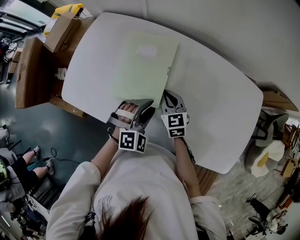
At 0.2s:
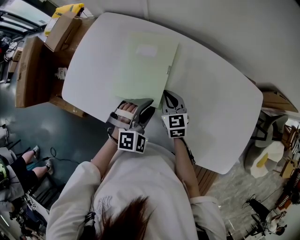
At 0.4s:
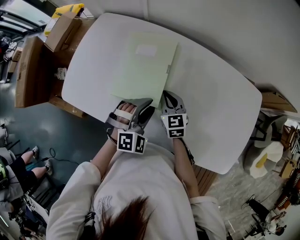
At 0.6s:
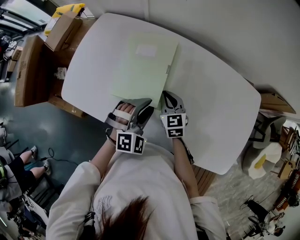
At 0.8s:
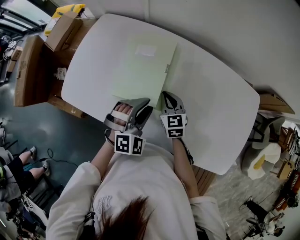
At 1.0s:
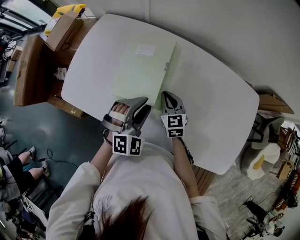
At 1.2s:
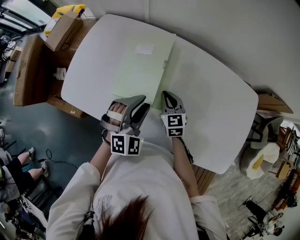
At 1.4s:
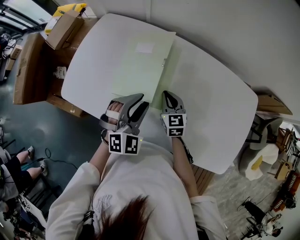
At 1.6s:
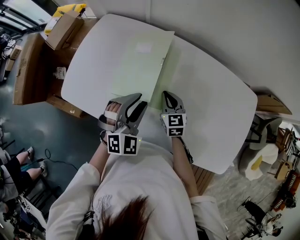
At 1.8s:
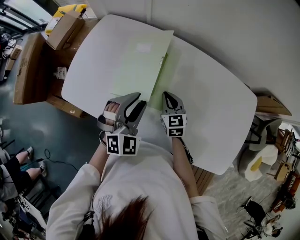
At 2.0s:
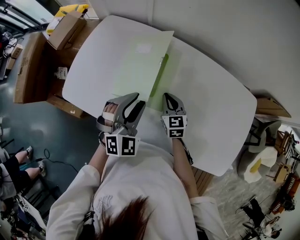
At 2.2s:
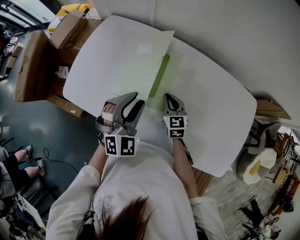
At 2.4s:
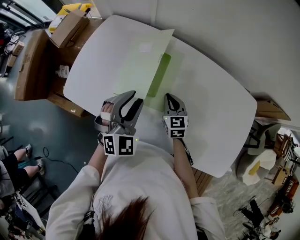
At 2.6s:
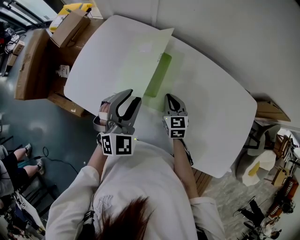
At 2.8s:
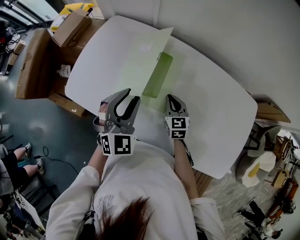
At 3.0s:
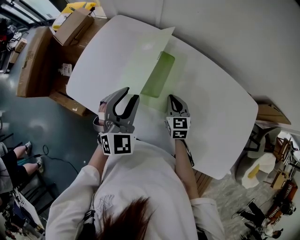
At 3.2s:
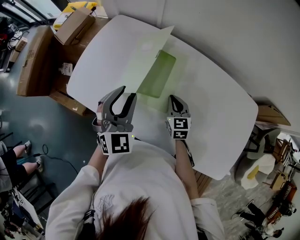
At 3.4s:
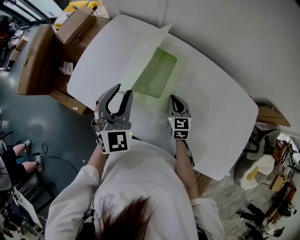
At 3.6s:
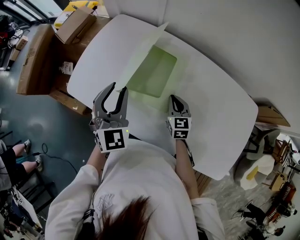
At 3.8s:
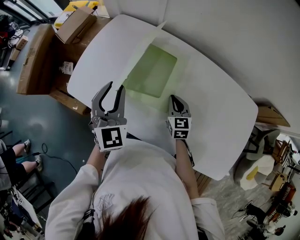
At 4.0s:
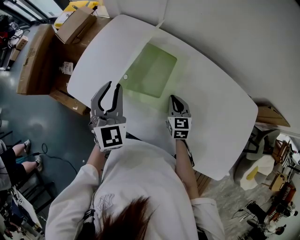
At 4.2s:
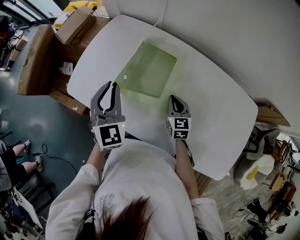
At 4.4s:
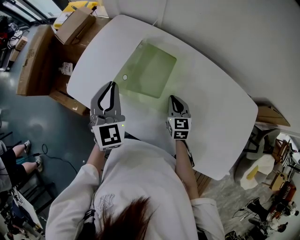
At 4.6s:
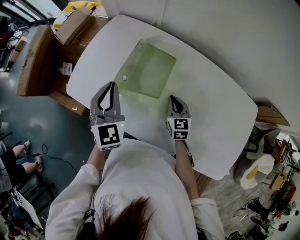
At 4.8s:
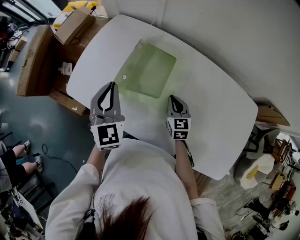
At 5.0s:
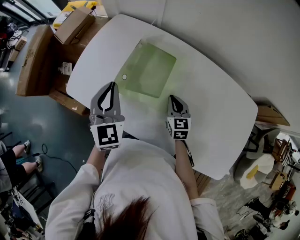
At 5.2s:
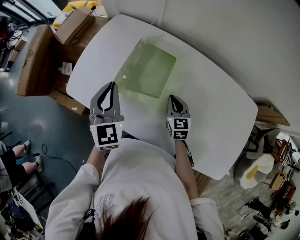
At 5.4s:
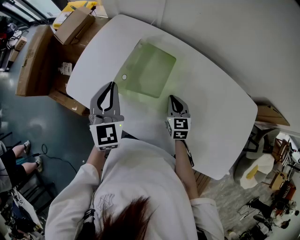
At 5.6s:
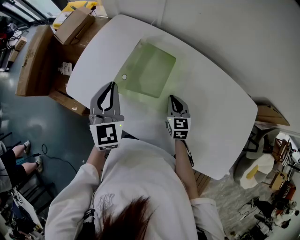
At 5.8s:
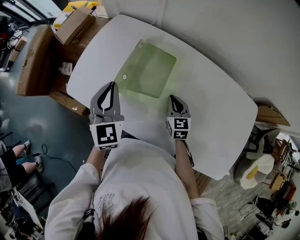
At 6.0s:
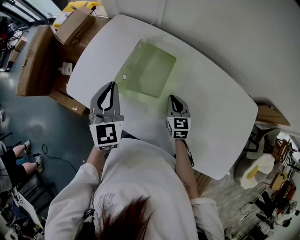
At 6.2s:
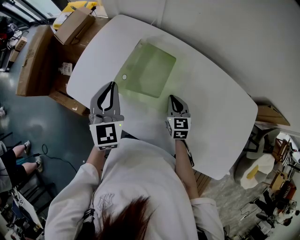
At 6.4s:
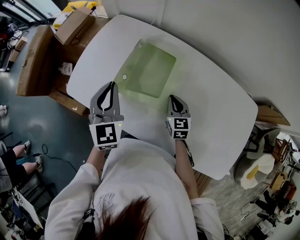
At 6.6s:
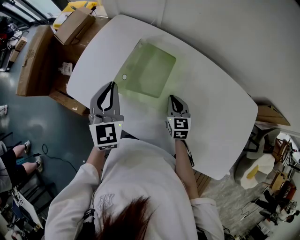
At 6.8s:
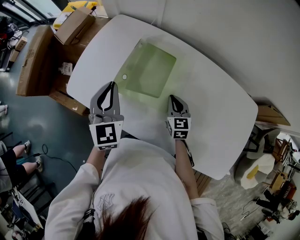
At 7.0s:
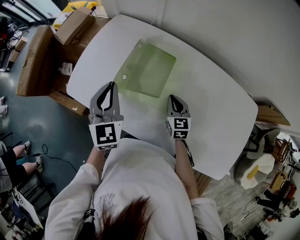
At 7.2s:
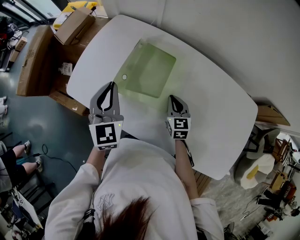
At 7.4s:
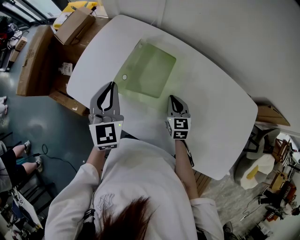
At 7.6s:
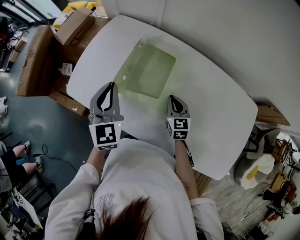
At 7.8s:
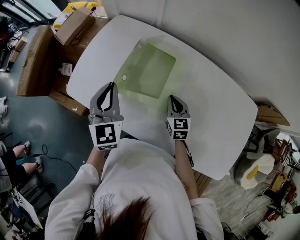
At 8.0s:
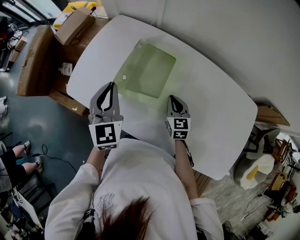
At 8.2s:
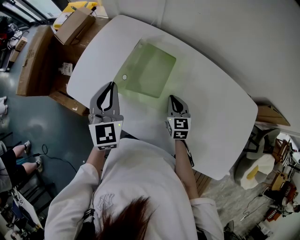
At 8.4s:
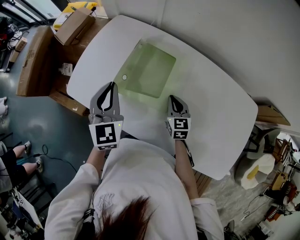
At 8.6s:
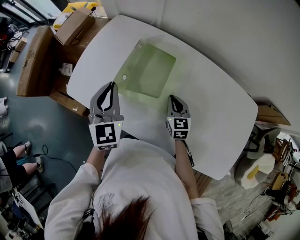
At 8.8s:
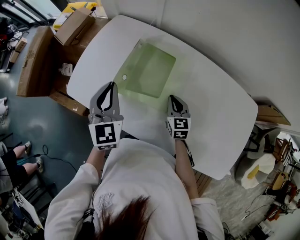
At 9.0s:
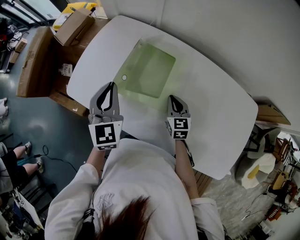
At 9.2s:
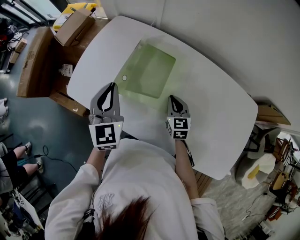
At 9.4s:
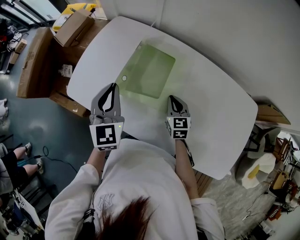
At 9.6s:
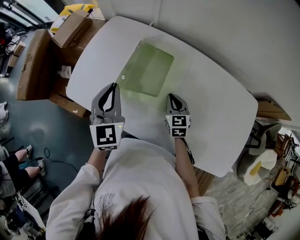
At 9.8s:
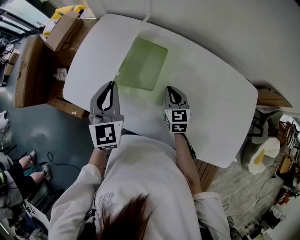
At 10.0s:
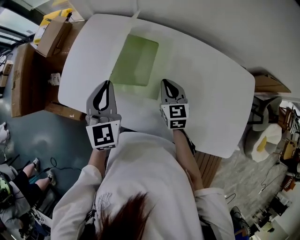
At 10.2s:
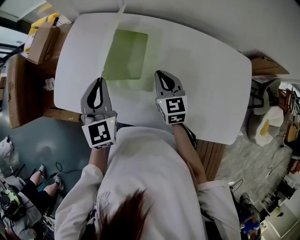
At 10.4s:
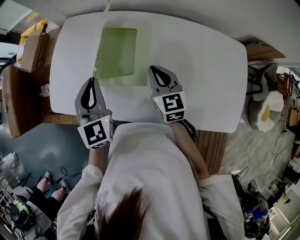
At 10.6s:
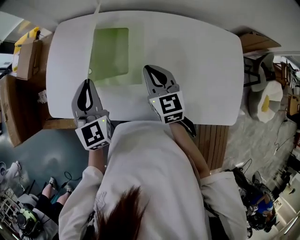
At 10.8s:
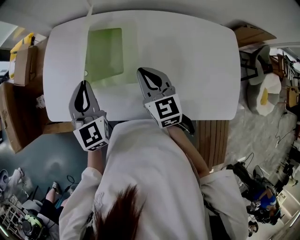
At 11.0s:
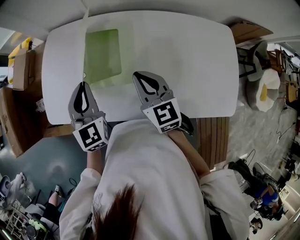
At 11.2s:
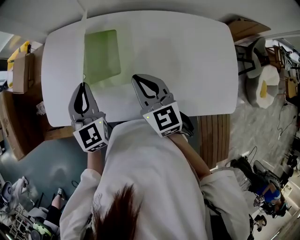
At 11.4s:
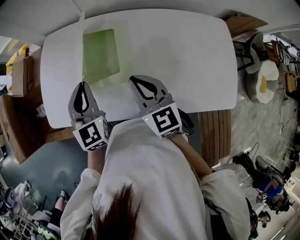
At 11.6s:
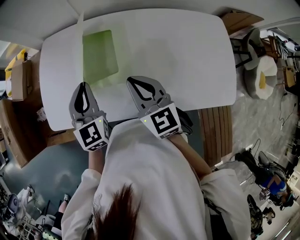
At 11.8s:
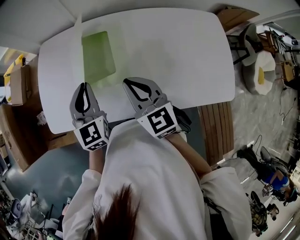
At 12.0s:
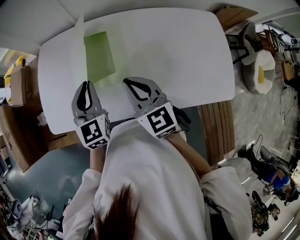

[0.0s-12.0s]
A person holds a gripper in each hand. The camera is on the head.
0.0s to 1.6s: The left gripper goes roughly 10 cm upward.
1.6s to 3.0s: The left gripper heads to the left, covering some 5 cm.
3.0s to 4.4s: The left gripper heads to the left, covering some 5 cm, swivels about 20 degrees, and closes its fingers.
4.4s to 6.0s: The grippers make only small movements.
6.0s to 9.0s: The two grippers keep their place.
9.0s to 10.4s: The right gripper is displaced upward by approximately 10 cm.
10.4s to 12.0s: The right gripper goes about 10 cm backward and upward.

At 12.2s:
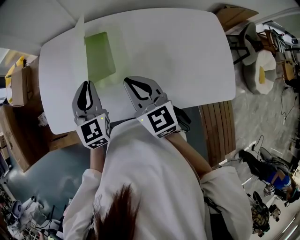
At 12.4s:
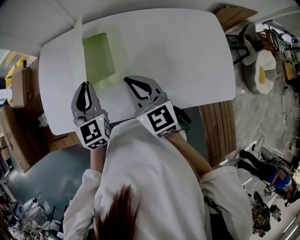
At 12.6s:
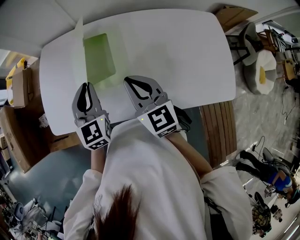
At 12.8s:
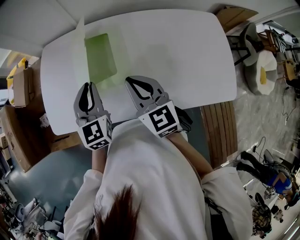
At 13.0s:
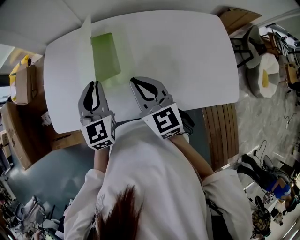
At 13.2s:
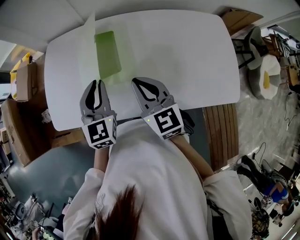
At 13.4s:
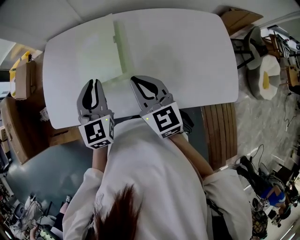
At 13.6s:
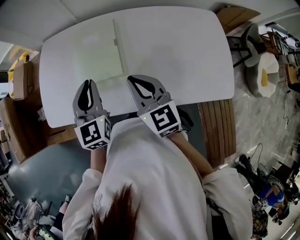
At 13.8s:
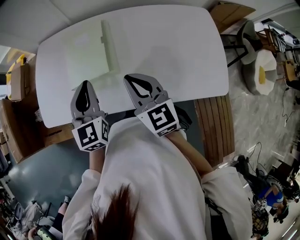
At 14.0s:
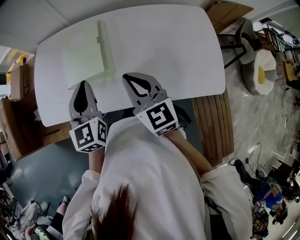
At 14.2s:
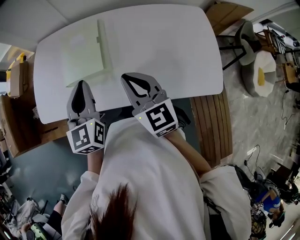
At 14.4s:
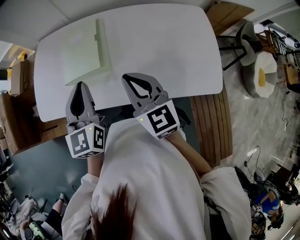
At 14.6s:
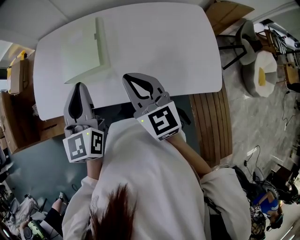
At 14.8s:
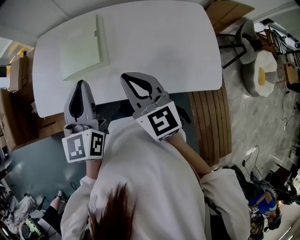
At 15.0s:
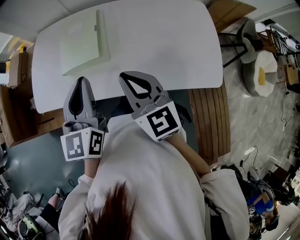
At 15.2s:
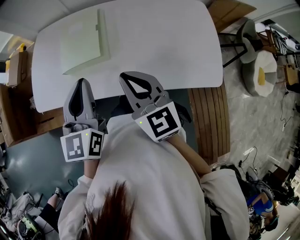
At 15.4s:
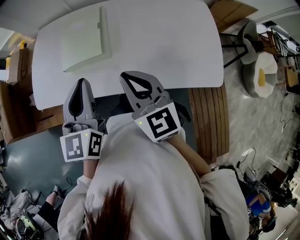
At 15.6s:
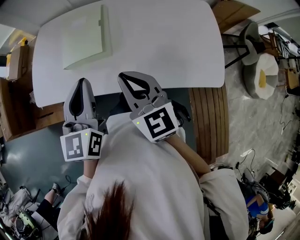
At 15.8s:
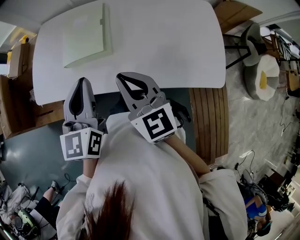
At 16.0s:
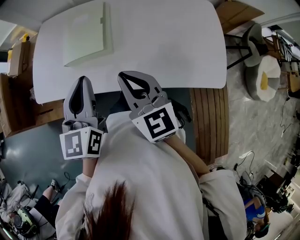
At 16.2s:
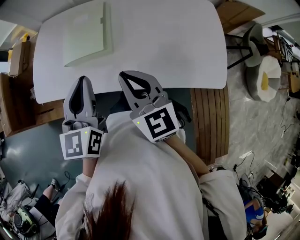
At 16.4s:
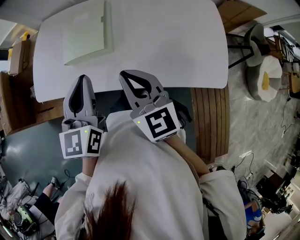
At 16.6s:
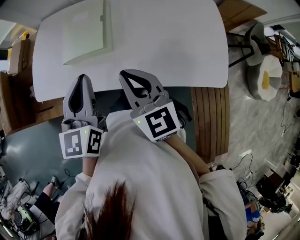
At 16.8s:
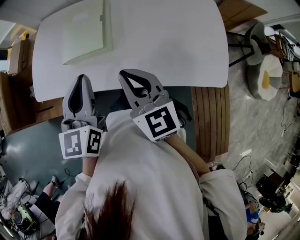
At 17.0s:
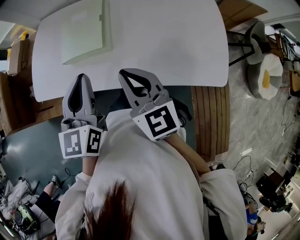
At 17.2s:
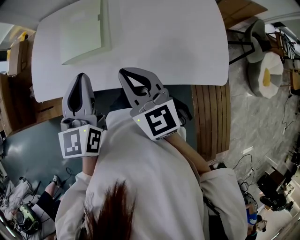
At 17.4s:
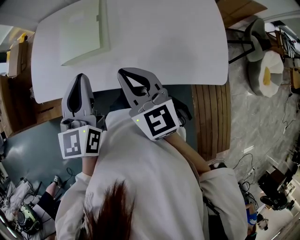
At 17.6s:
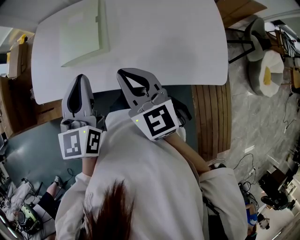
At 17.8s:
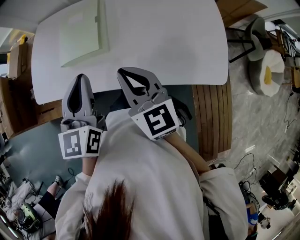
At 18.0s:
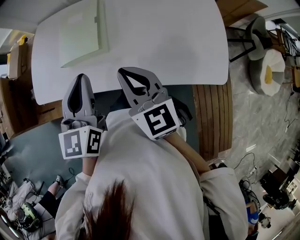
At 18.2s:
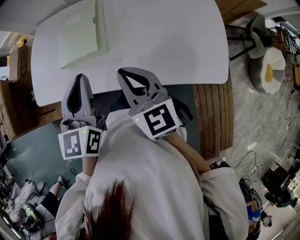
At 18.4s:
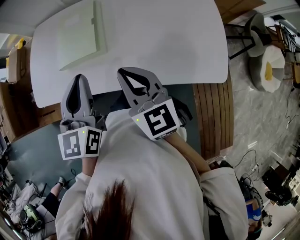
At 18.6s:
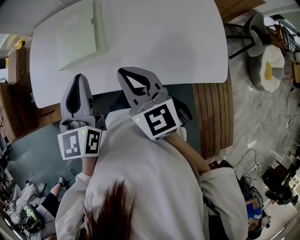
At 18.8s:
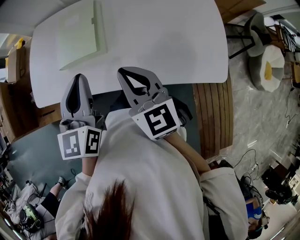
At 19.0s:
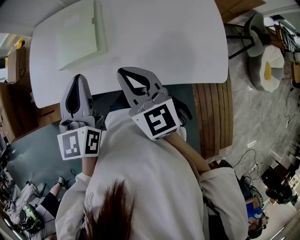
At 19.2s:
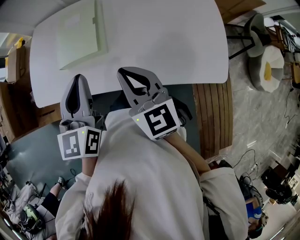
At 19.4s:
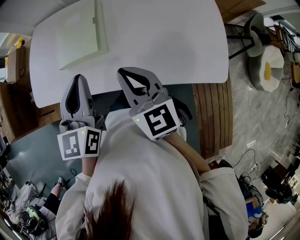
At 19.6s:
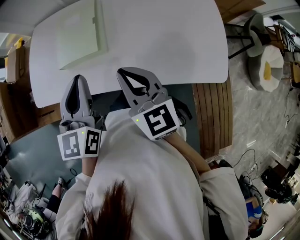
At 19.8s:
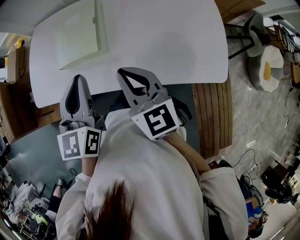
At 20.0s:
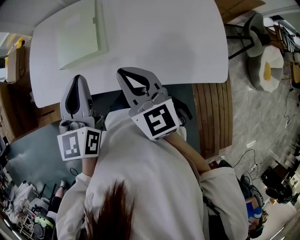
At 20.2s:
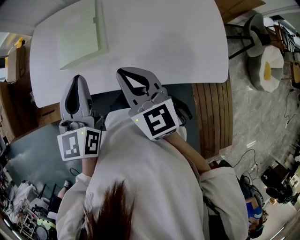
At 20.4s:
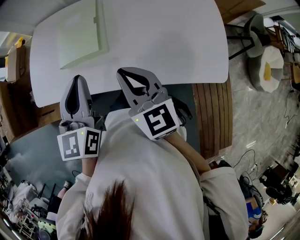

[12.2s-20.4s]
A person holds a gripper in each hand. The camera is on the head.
12.2s to 13.8s: The right gripper goes roughly 10 cm to the right and backward, while the left gripper shifts some 10 cm backward and to the right.
13.8s to 15.4s: The right gripper moves backward, approximately 10 cm; the left gripper shifts approximately 10 cm backward and upward.
15.4s to 20.4s: The grippers stay close to where they were, moving slightly.

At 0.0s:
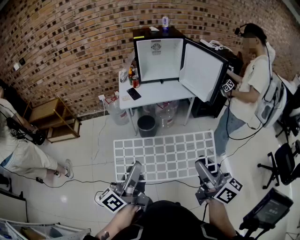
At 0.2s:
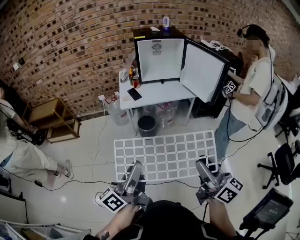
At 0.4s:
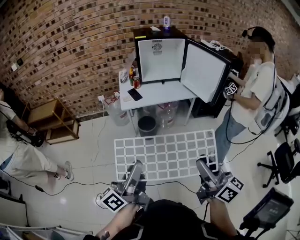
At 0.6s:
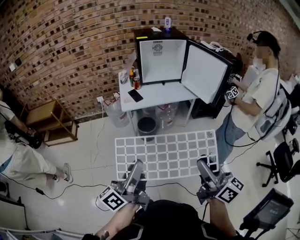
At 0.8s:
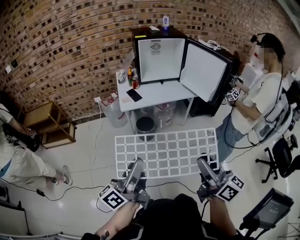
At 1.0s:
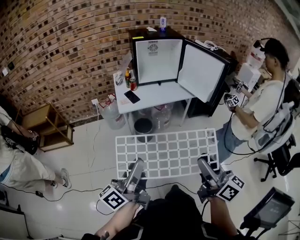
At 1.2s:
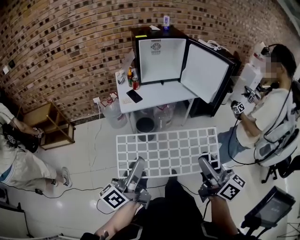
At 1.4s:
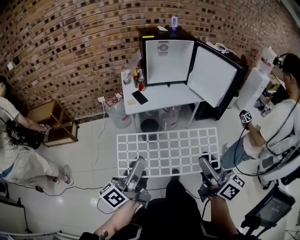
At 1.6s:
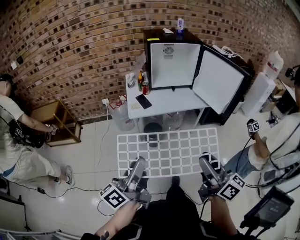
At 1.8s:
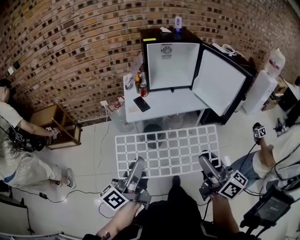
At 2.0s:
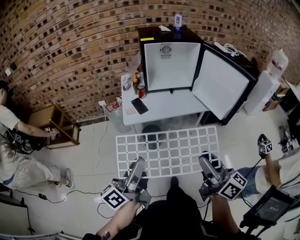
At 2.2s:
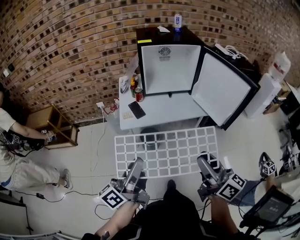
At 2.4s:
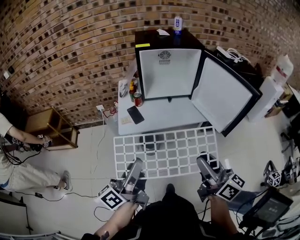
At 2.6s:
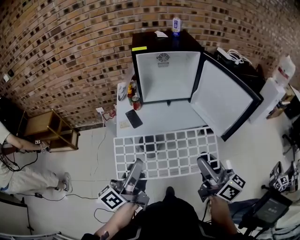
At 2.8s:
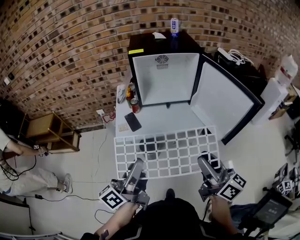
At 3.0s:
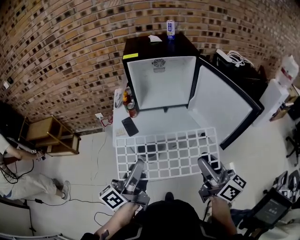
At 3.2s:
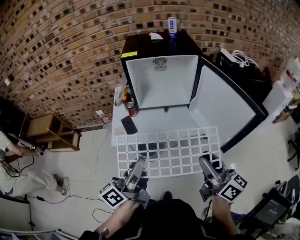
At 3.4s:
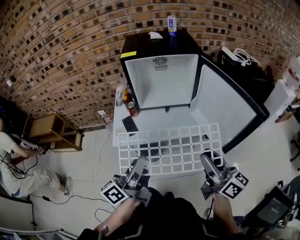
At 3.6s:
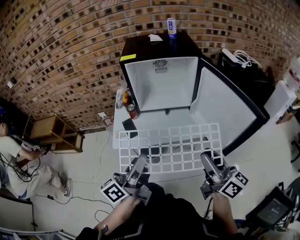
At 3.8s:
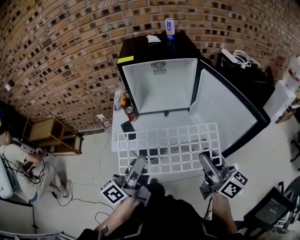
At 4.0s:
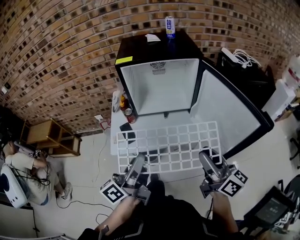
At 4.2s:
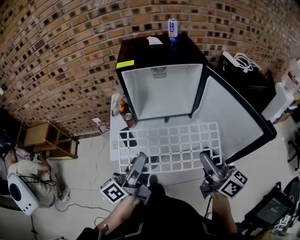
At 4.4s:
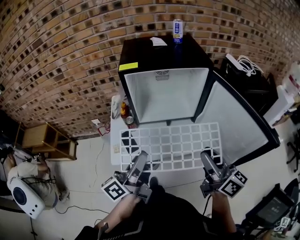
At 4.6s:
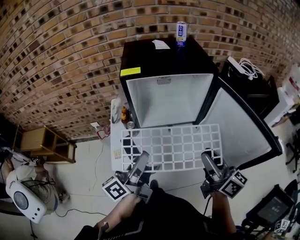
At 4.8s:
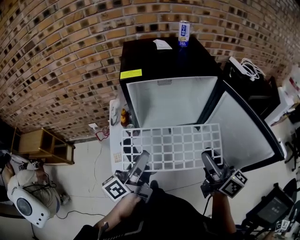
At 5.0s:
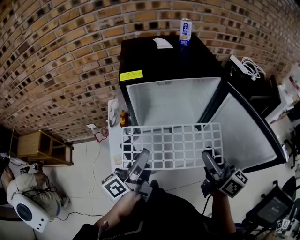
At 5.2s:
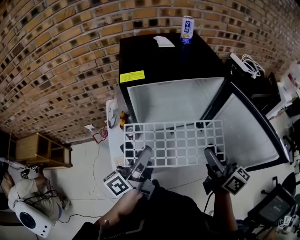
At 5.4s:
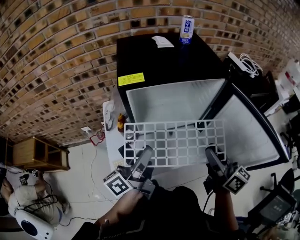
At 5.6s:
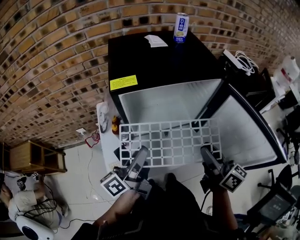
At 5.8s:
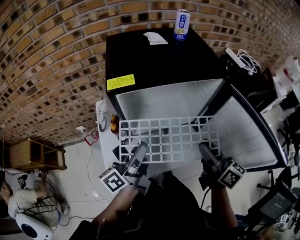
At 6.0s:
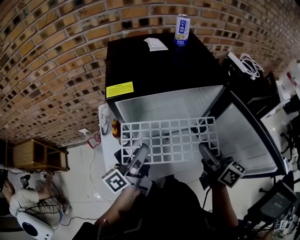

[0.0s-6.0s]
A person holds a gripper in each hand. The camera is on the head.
0.0s to 1.6s: Both grippers travel together forward, roughly 15 cm.
1.6s to 3.0s: The two grippers go approximately 30 cm forward and to the right.
3.0s to 4.4s: Both grippers travel together forward, approximately 15 cm.
4.4s to 6.0s: Both grippers move forward, approximately 20 cm.
